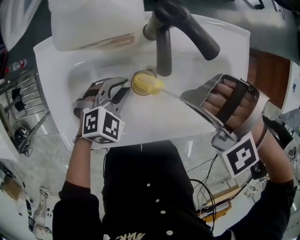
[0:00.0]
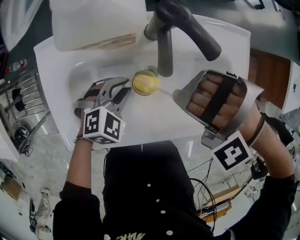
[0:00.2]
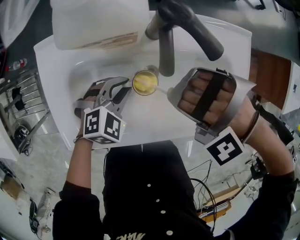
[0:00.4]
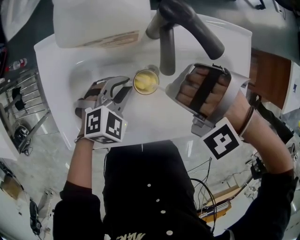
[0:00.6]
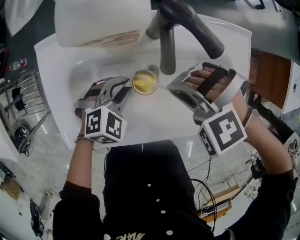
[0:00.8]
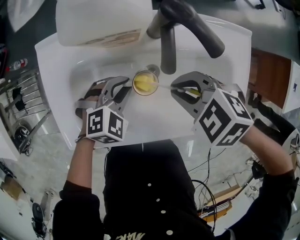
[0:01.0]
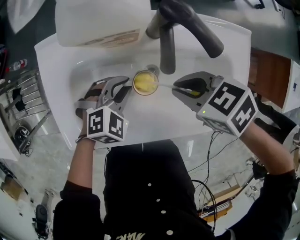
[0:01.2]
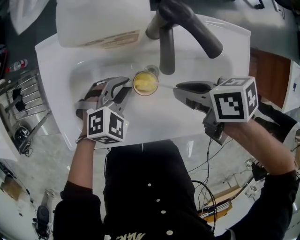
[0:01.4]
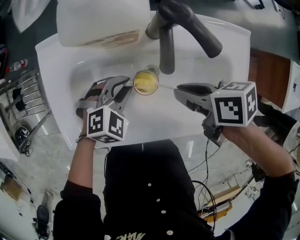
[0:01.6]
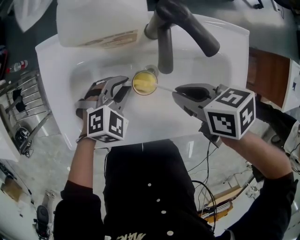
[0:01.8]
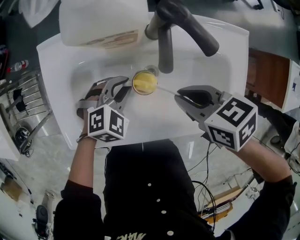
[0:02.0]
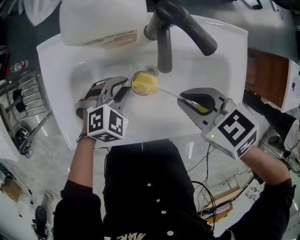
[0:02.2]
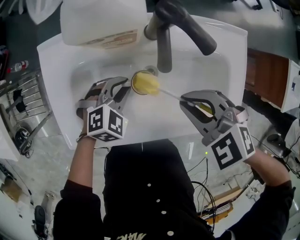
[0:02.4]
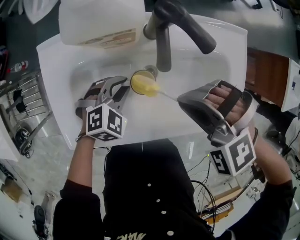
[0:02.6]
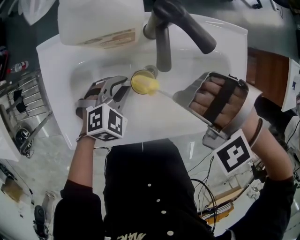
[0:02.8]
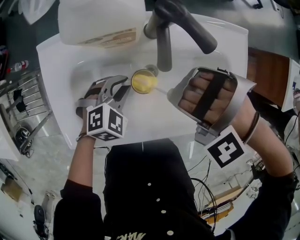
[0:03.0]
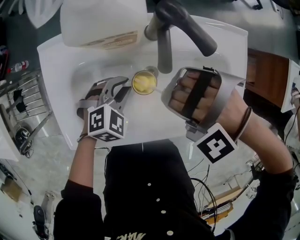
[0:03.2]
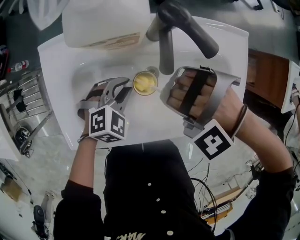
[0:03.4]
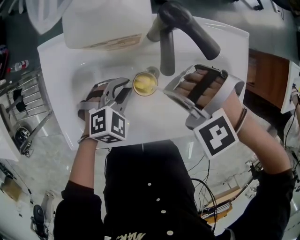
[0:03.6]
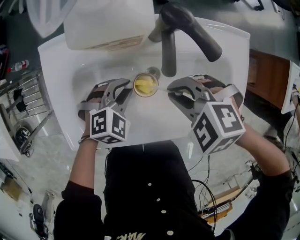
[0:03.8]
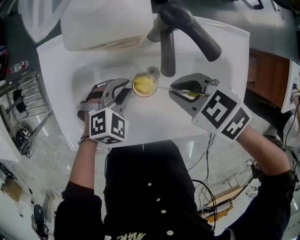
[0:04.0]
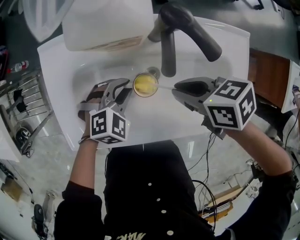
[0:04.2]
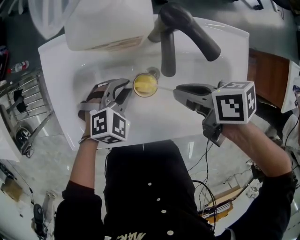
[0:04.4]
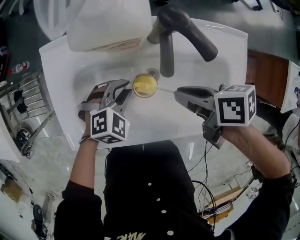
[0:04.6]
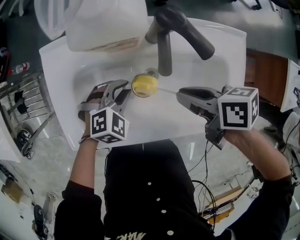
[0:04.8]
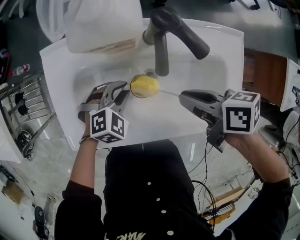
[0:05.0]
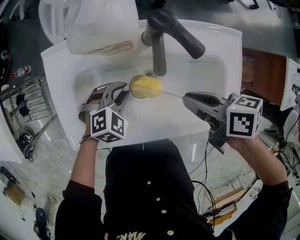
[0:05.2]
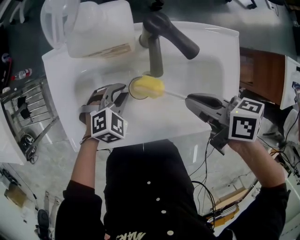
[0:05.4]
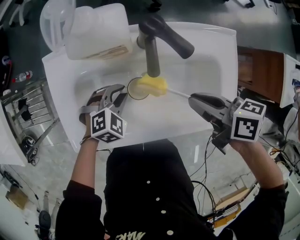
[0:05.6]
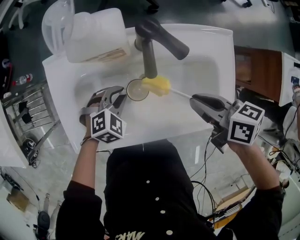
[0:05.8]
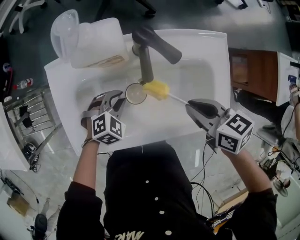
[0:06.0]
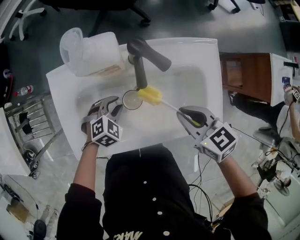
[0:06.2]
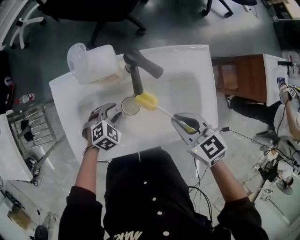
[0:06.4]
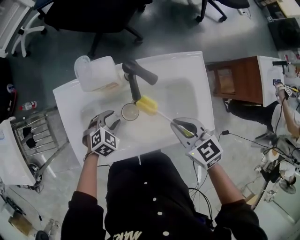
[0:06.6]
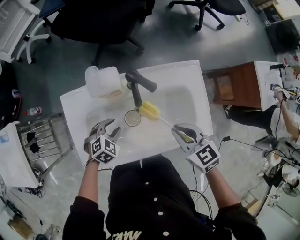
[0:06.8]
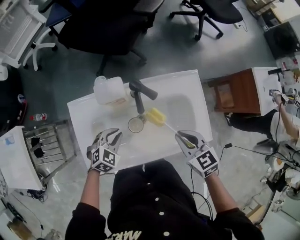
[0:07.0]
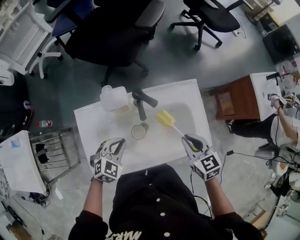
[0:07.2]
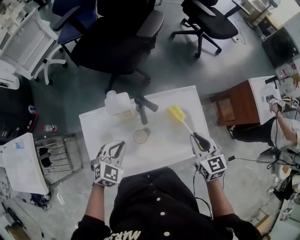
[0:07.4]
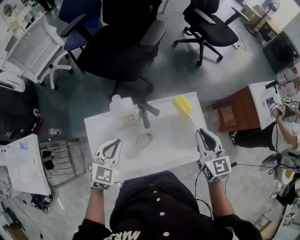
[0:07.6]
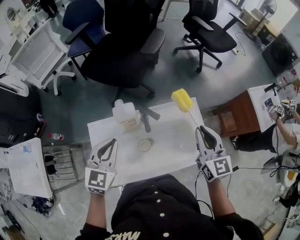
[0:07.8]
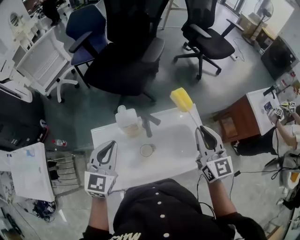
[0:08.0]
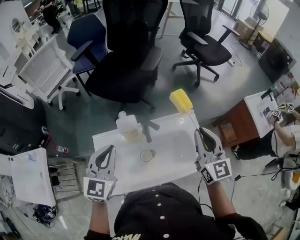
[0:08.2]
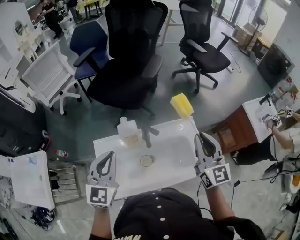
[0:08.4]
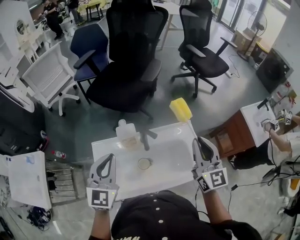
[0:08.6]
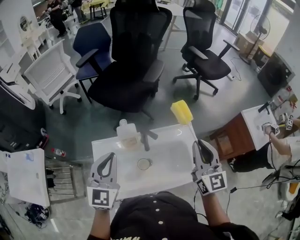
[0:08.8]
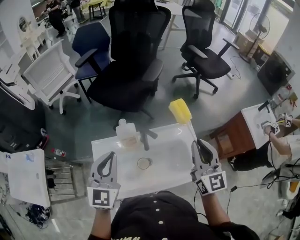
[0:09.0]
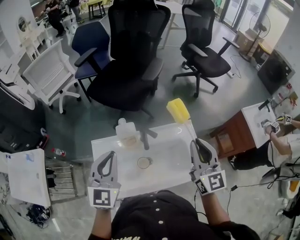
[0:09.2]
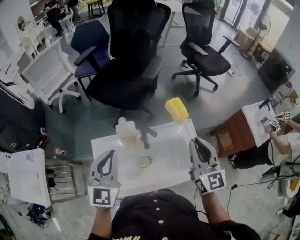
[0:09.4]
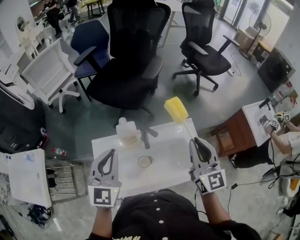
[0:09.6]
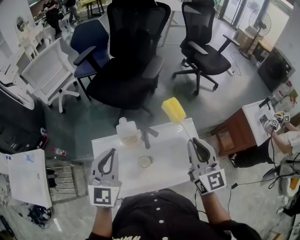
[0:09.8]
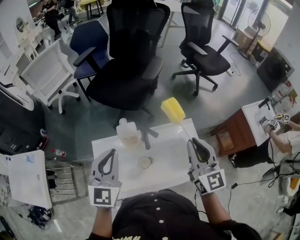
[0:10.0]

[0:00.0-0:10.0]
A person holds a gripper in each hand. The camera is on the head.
0:00.0 to 0:01.4: The right gripper heads downward, covering roughly 5 cm, and twists approximately 120 degrees clockwise, seen from behind.
0:01.4 to 0:02.8: The right gripper moves upward, about 5 cm, and twists approximately 130 degrees counterclockwise, seen from behind.
0:02.8 to 0:04.2: The right gripper travels downward by some 5 cm, and rolls clockwise, seen from behind, by roughly 110 degrees.
0:04.2 to 0:05.8: The right gripper ends up about 10 cm from where it was, and changes its angle by some 30 degrees.
0:05.8 to 0:07.2: The left gripper heads upward, covering roughly 15 cm, and opens, then closes again. The right gripper heads upward, covering approximately 5 cm, and swivels approximately 40 degrees.
0:07.2 to 0:08.6: The grippers both shift upward by about 25 cm. The left gripper tips its fingers upward by roughly 40 degrees; the right gripper tilts its fingers some 40 degrees upward.
0:08.6 to 0:10.0: There are only small adjustments of the grippers.

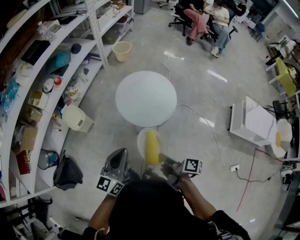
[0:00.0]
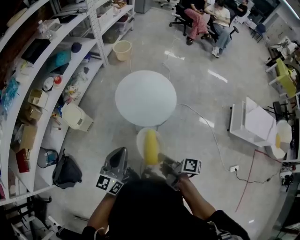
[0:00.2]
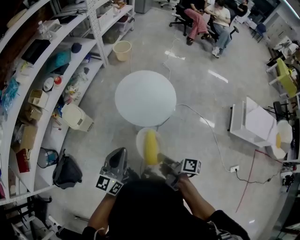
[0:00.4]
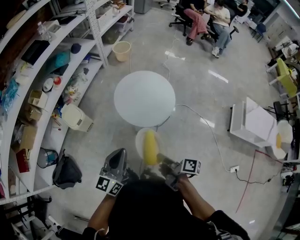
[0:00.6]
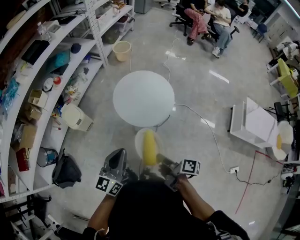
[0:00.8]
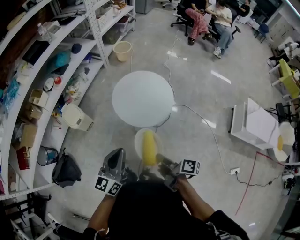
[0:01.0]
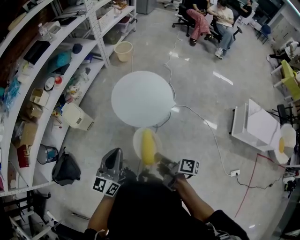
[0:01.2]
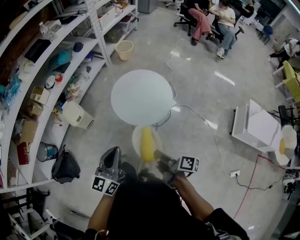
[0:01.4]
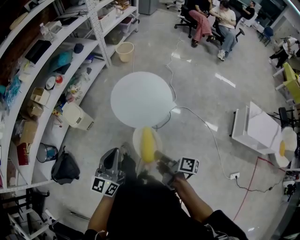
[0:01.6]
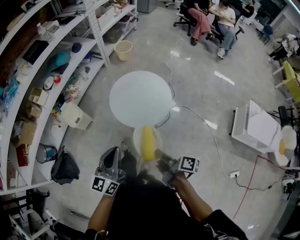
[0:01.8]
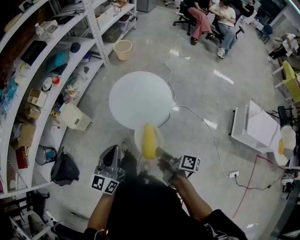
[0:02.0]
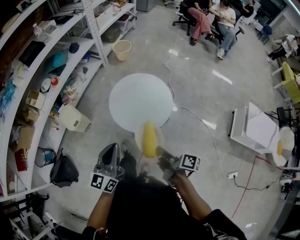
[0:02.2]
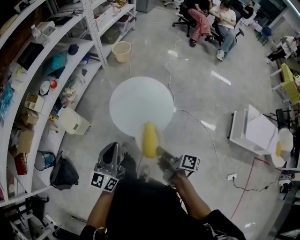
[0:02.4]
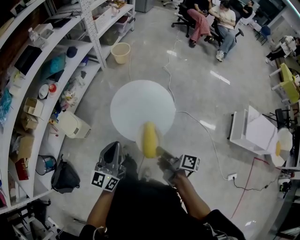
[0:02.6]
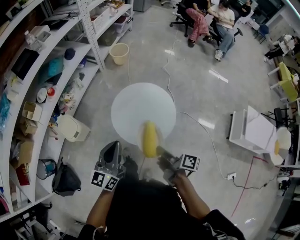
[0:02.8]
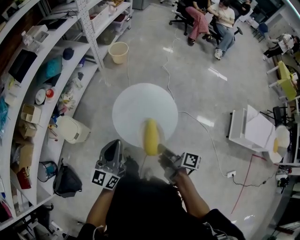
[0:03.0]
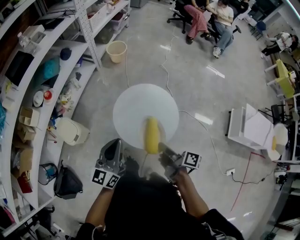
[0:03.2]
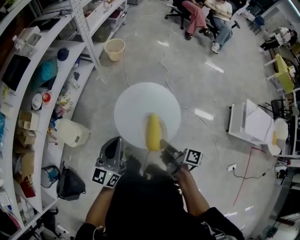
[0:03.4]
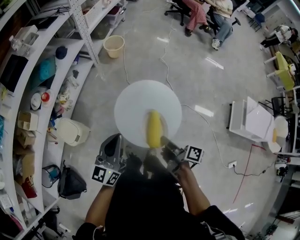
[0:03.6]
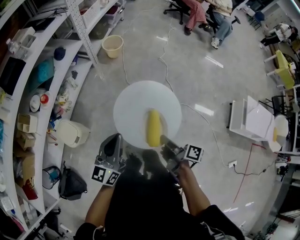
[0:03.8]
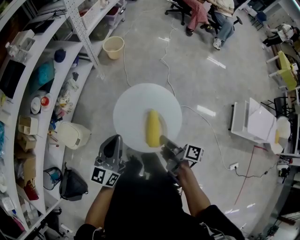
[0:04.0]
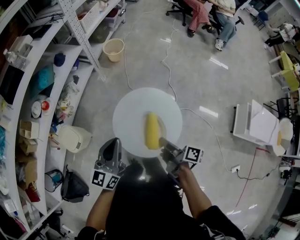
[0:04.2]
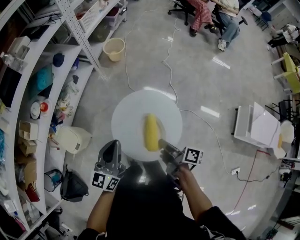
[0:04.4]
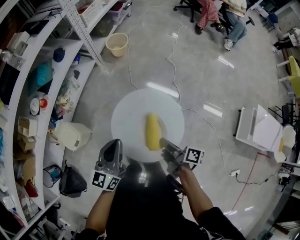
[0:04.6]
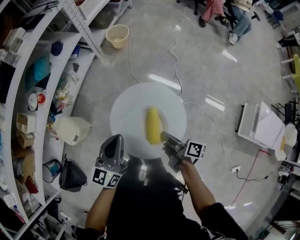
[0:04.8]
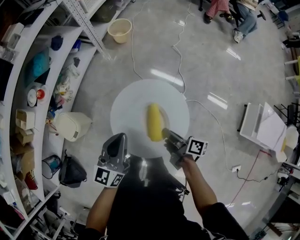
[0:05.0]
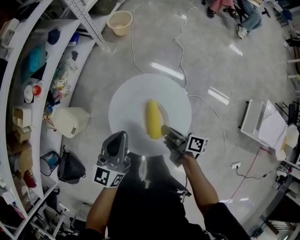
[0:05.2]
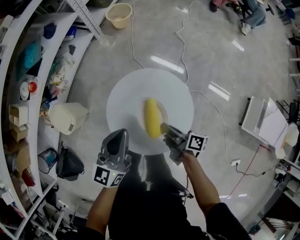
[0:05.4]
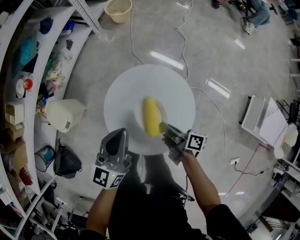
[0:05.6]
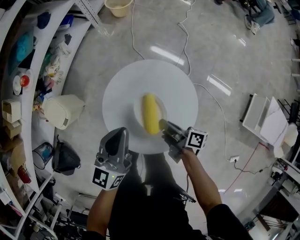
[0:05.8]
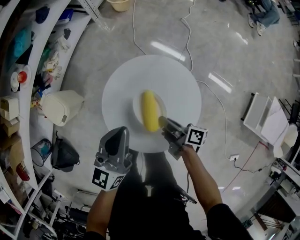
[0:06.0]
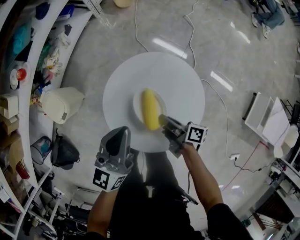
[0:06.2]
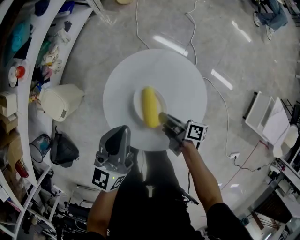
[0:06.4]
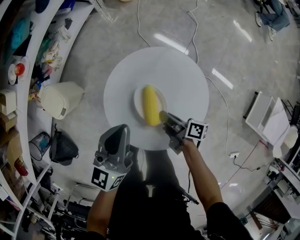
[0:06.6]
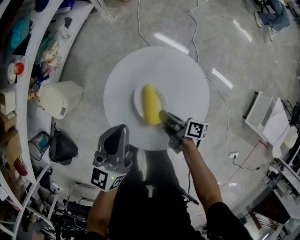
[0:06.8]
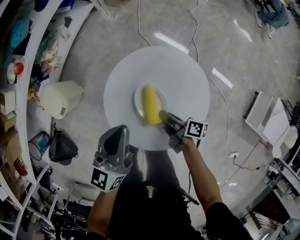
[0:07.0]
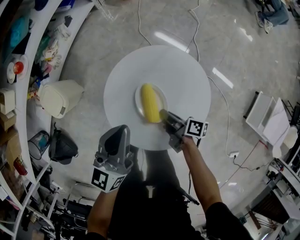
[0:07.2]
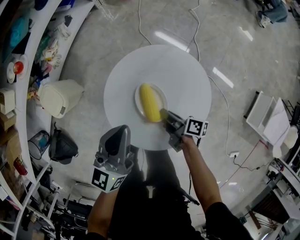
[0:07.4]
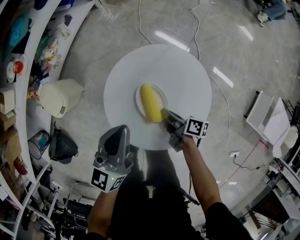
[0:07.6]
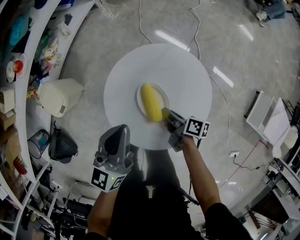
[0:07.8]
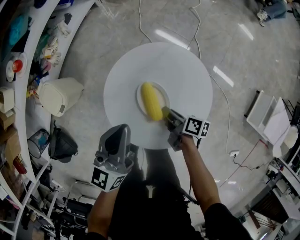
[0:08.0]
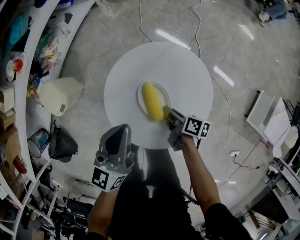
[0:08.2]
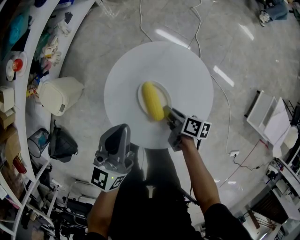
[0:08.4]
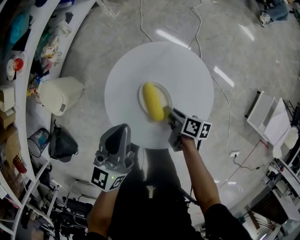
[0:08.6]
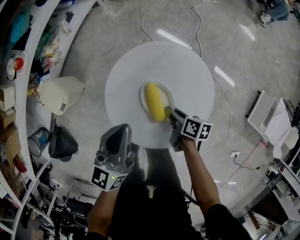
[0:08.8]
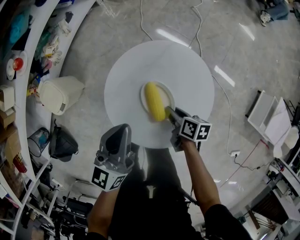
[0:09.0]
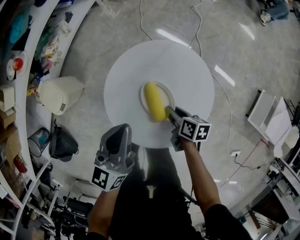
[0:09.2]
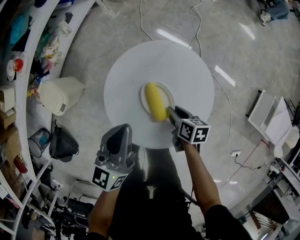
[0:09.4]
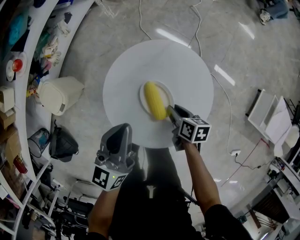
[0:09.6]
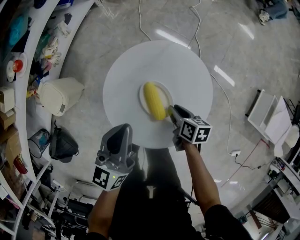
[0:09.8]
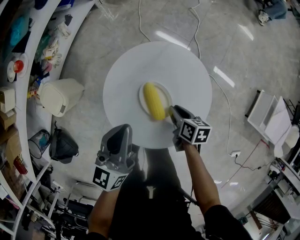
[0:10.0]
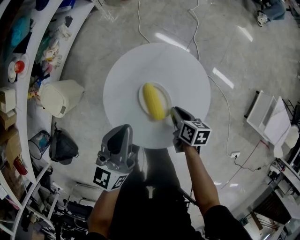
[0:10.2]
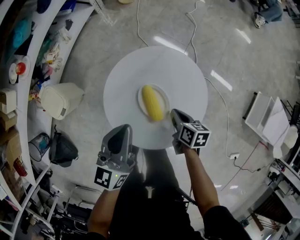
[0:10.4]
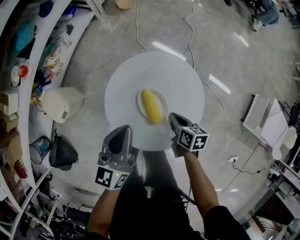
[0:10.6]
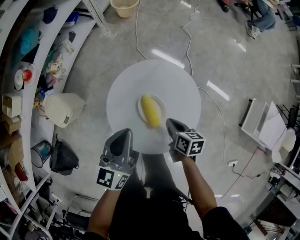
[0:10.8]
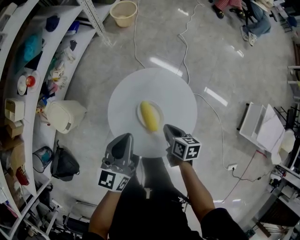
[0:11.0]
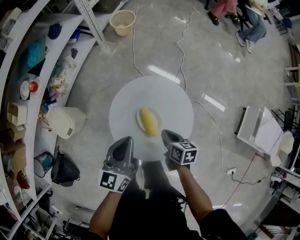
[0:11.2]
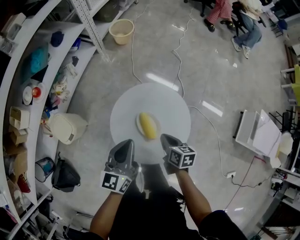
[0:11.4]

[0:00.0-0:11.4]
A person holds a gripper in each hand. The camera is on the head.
0:00.0 to 0:01.4: The left gripper moves approximately 5 cm.
0:01.4 to 0:02.8: The left gripper moves approximately 20 cm.
0:02.8 to 0:04.2: The left gripper moves approximately 15 cm.
0:04.2 to 0:05.6: The left gripper heads downward, covering approximately 10 cm.
0:05.6 to 0:07.2: The left gripper moves downward, roughly 5 cm.
0:10.0 to 0:11.4: The left gripper goes approximately 5 cm upward.

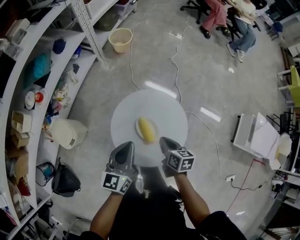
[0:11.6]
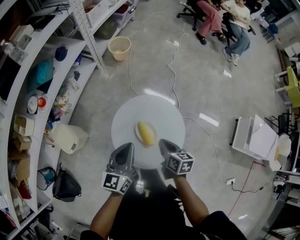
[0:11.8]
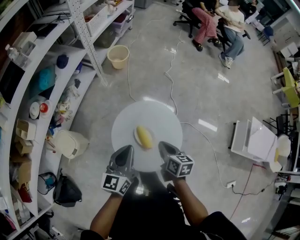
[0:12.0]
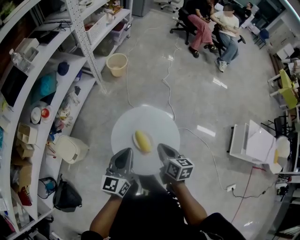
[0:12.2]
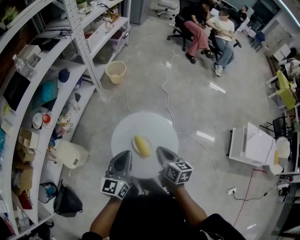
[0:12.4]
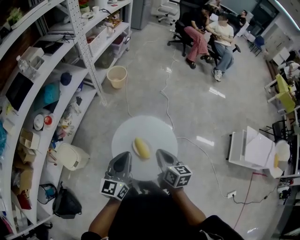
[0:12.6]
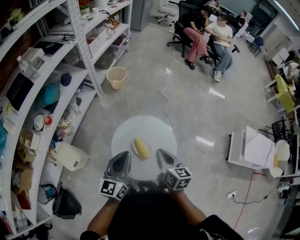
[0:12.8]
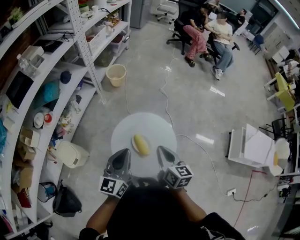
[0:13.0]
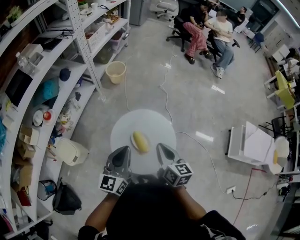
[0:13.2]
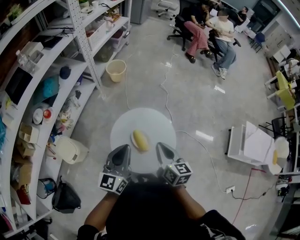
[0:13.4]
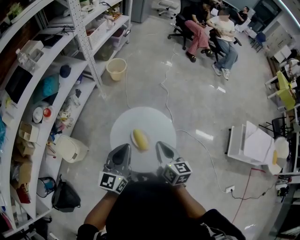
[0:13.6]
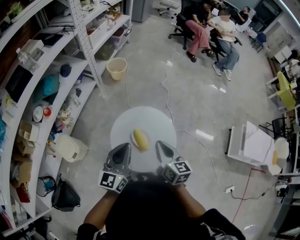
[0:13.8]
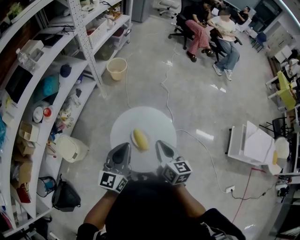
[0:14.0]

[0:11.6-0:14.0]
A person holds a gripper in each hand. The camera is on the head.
0:11.6 to 0:12.8: The left gripper travels upward by roughly 10 cm.
